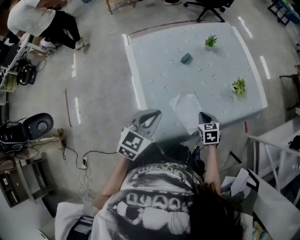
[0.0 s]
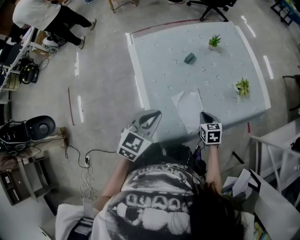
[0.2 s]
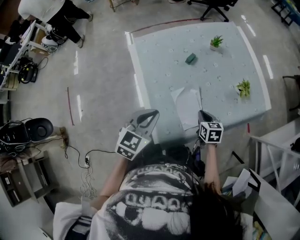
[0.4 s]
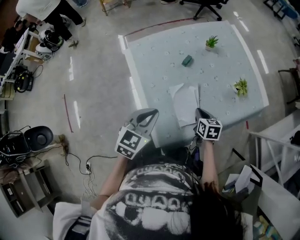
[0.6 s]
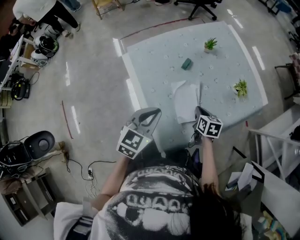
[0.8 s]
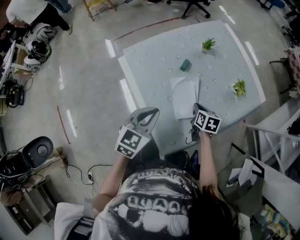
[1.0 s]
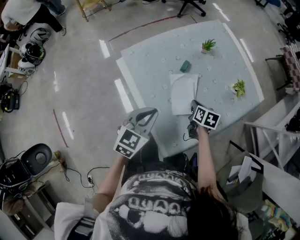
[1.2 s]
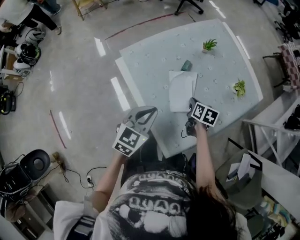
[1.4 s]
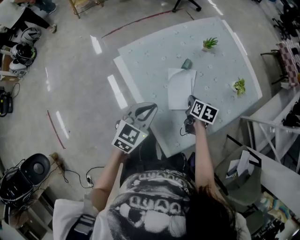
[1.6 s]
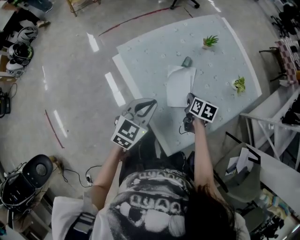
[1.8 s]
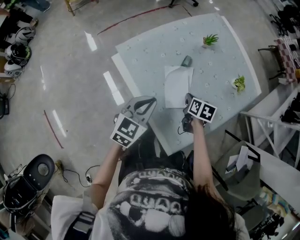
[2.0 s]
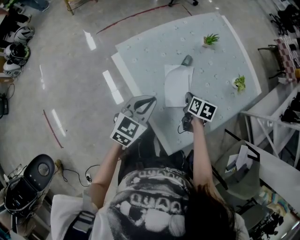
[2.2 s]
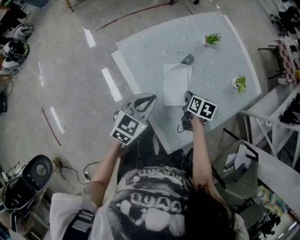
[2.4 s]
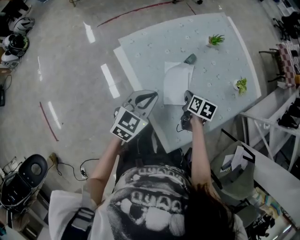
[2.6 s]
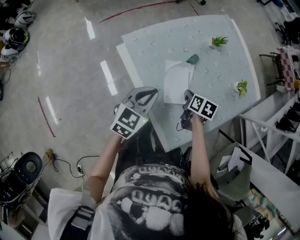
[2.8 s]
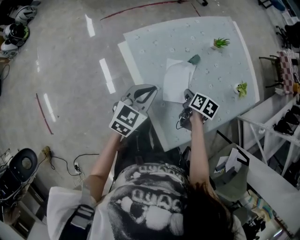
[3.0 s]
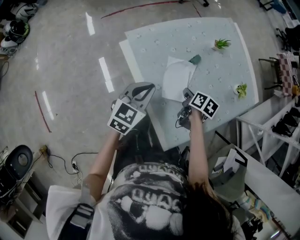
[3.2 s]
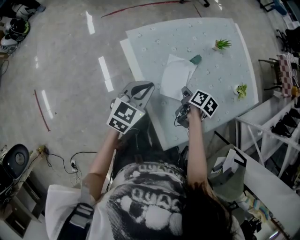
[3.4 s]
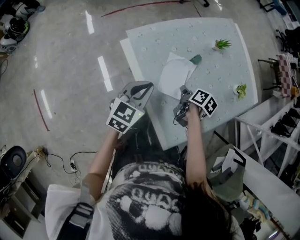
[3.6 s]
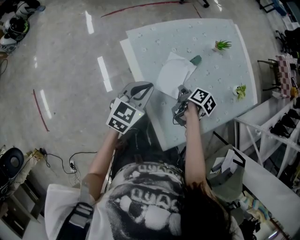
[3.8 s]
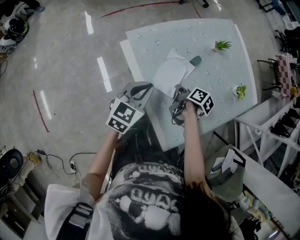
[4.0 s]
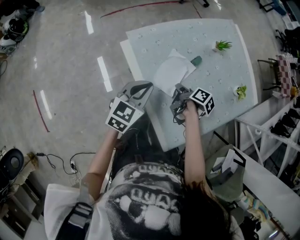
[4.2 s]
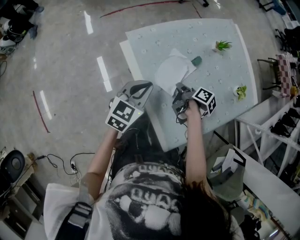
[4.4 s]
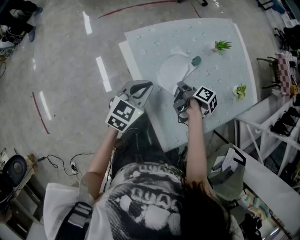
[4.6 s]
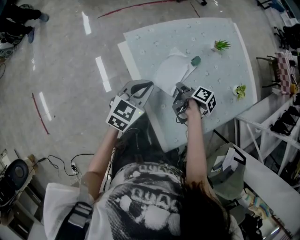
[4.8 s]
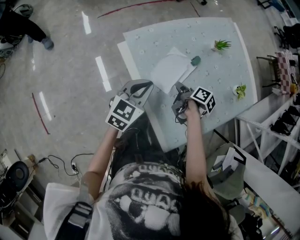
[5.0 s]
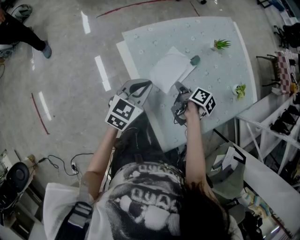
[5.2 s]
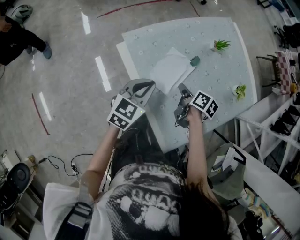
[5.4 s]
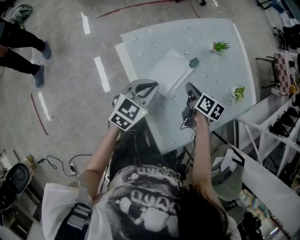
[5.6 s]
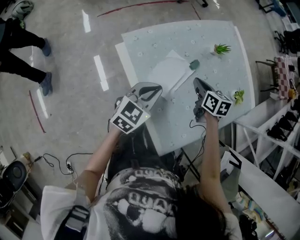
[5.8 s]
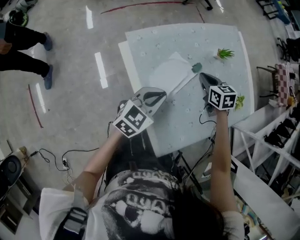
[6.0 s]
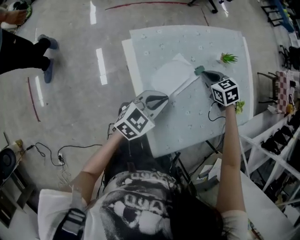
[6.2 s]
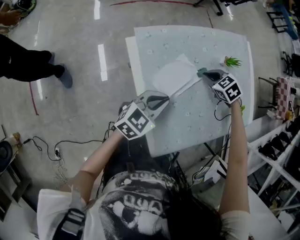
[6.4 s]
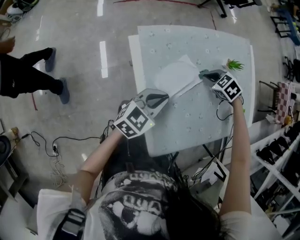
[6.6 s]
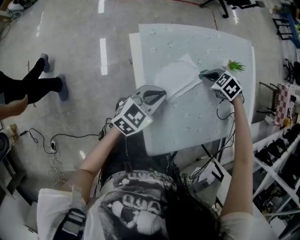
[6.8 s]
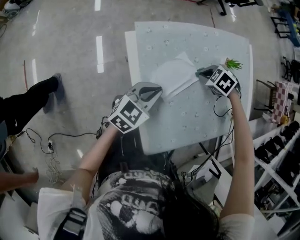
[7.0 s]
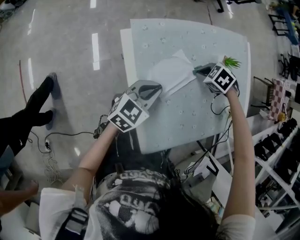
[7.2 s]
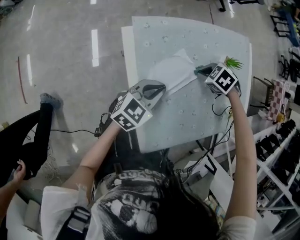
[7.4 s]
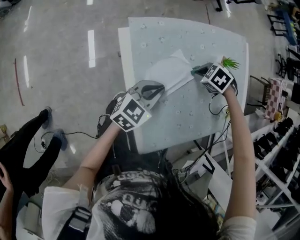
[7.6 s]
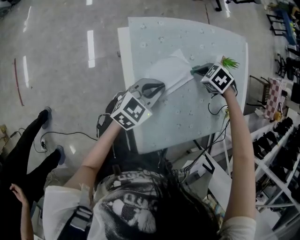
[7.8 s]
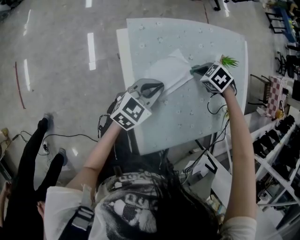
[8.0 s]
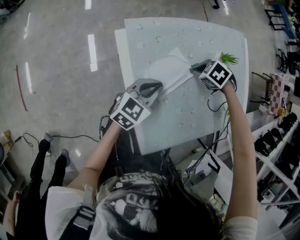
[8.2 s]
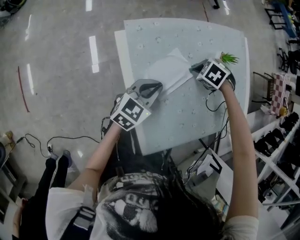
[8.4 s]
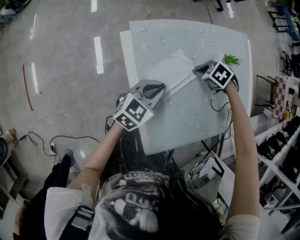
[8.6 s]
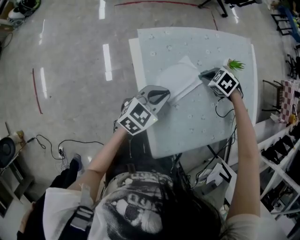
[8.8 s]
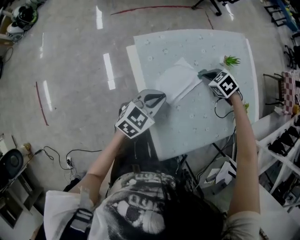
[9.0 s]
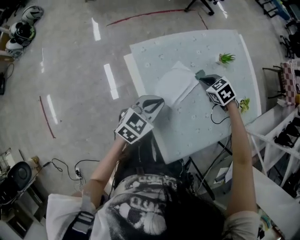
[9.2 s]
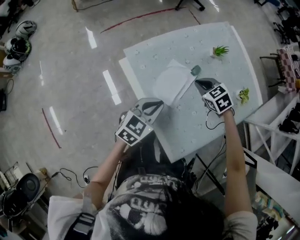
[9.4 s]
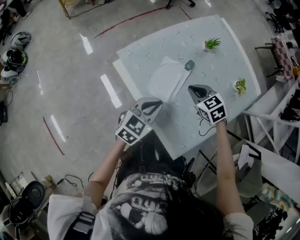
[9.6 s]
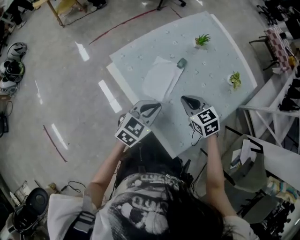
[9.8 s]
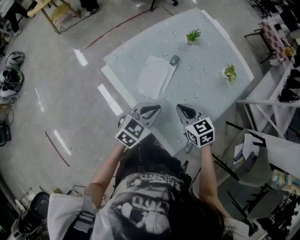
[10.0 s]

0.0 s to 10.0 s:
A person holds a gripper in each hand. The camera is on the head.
0.0 to 1.4 s: The two grippers go about 15 cm to the left and forward. The right gripper rolls clockwise, seen from behind, by approximately 40 degrees.
1.4 to 2.8 s: The right gripper shifts roughly 5 cm to the left; the left gripper ends up some 5 cm from where it was.
2.8 to 4.2 s: The right gripper moves to the left, about 5 cm, and changes its angle by roughly 40 degrees.
4.2 to 5.8 s: The left gripper shifts by about 5 cm, while the right gripper shifts roughly 10 cm forward, upward and to the right, and twists roughly 50 degrees counterclockwise, seen from behind.
5.8 to 7.2 s: The right gripper shifts by some 5 cm, and tilts its fingers some 40 degrees downward.
7.2 to 8.6 s: The grippers make only small movements.
8.6 to 10.0 s: The right gripper changes place by some 20 cm, and points its fingers approximately 40 degrees further upward; the left gripper shifts by about 10 cm, and rotates about 20 degrees.

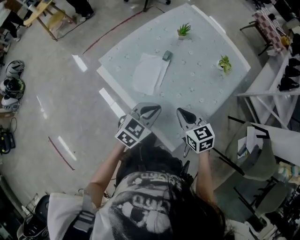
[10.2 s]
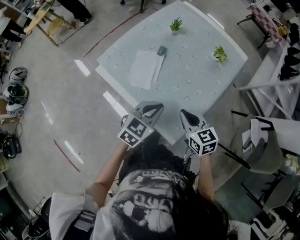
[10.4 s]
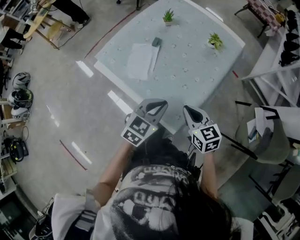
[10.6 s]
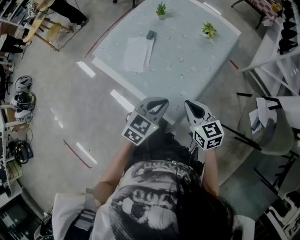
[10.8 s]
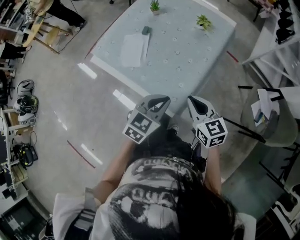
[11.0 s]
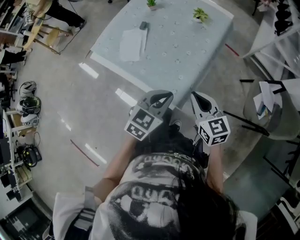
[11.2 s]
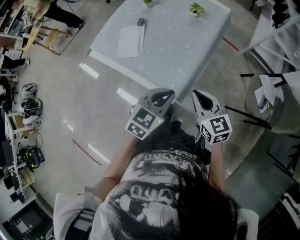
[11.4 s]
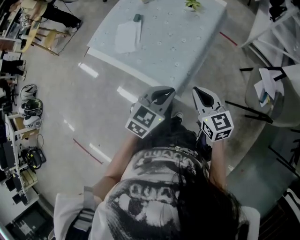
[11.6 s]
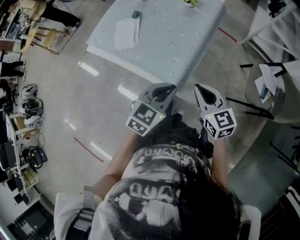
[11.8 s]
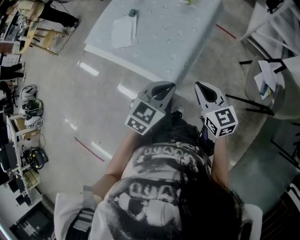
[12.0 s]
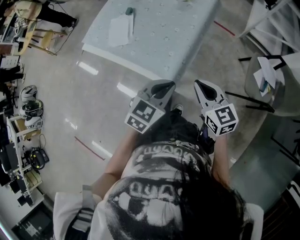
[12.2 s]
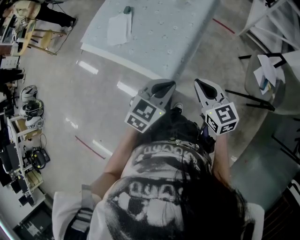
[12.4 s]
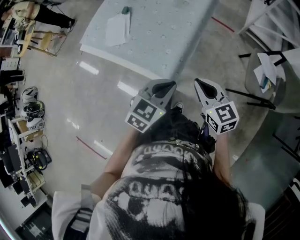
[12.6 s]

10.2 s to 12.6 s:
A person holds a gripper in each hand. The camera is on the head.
10.2 to 11.4 s: Both grippers travel together backward and to the right, approximately 25 cm. The right gripper swivels roughly 20 degrees.
11.4 to 12.6 s: Both grippers travel together to the right, some 5 cm.

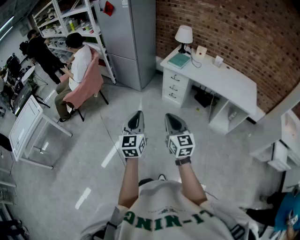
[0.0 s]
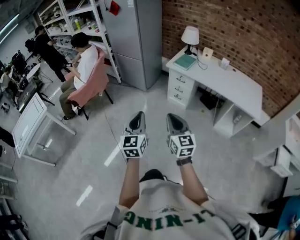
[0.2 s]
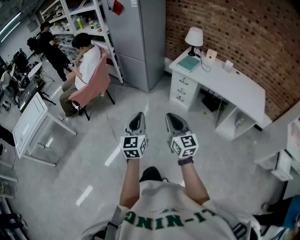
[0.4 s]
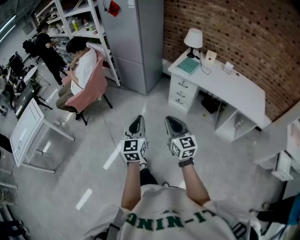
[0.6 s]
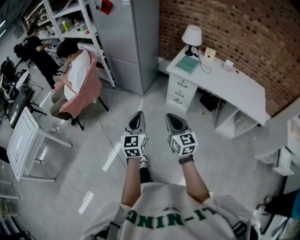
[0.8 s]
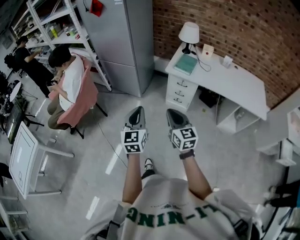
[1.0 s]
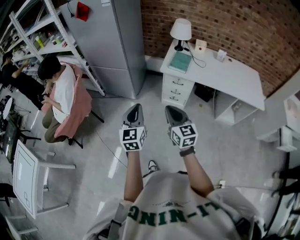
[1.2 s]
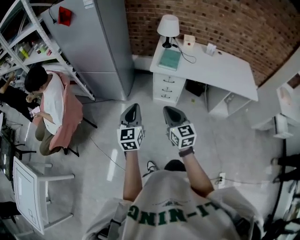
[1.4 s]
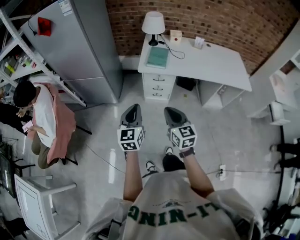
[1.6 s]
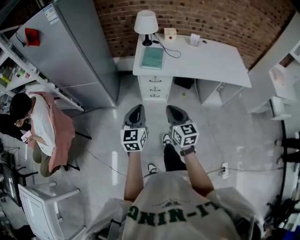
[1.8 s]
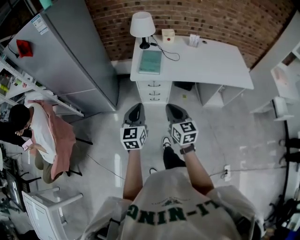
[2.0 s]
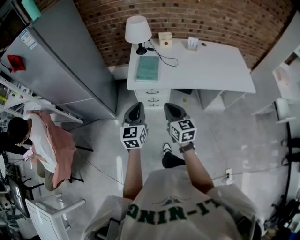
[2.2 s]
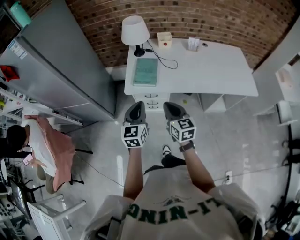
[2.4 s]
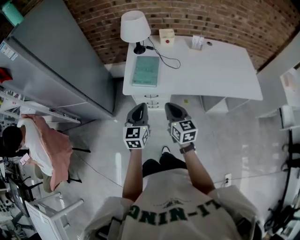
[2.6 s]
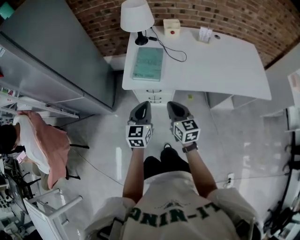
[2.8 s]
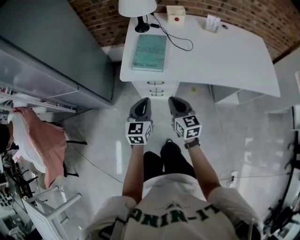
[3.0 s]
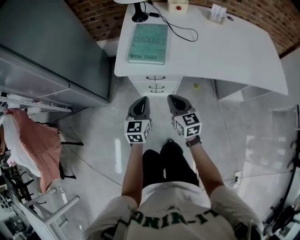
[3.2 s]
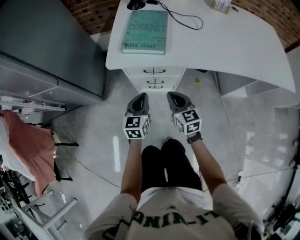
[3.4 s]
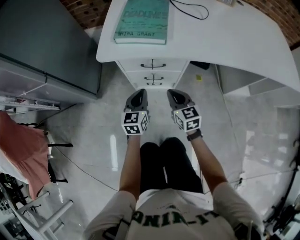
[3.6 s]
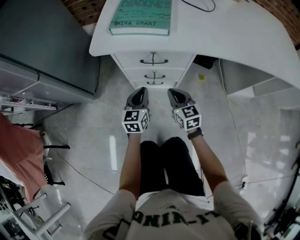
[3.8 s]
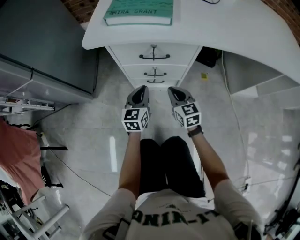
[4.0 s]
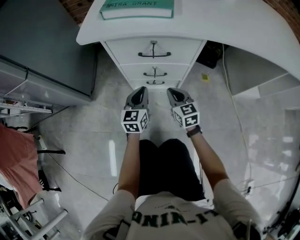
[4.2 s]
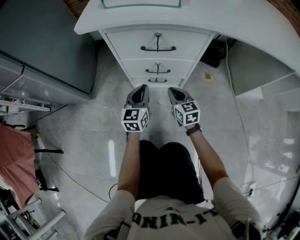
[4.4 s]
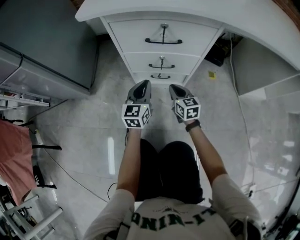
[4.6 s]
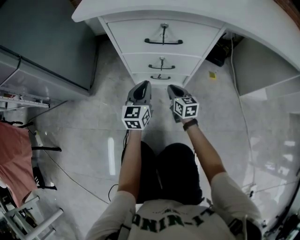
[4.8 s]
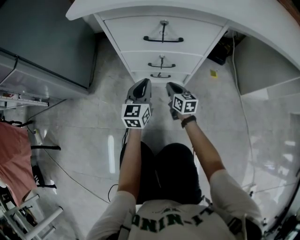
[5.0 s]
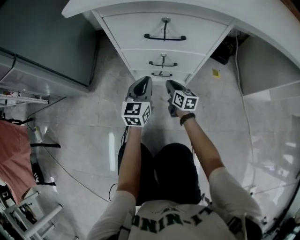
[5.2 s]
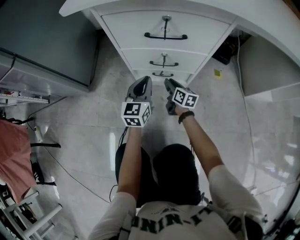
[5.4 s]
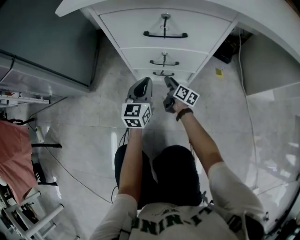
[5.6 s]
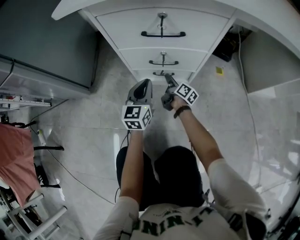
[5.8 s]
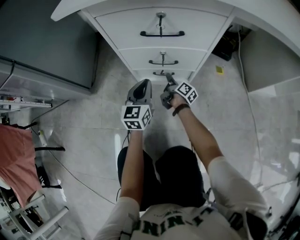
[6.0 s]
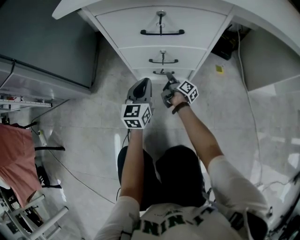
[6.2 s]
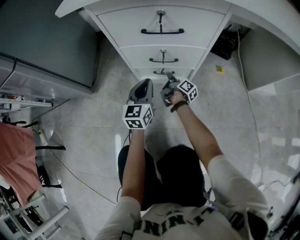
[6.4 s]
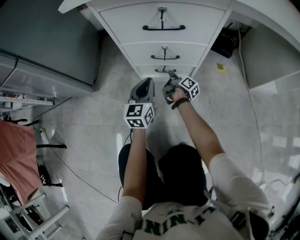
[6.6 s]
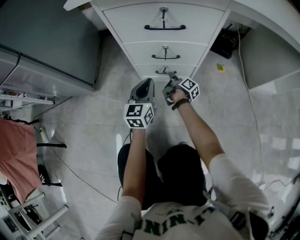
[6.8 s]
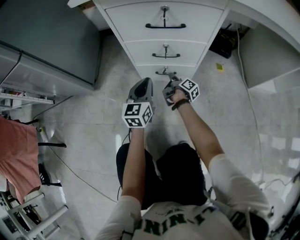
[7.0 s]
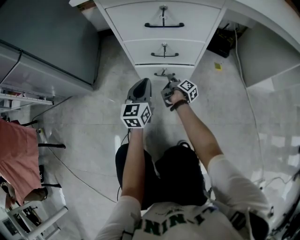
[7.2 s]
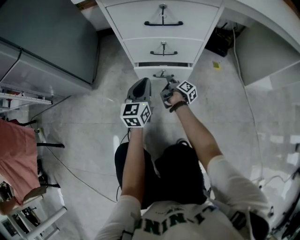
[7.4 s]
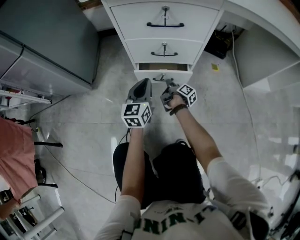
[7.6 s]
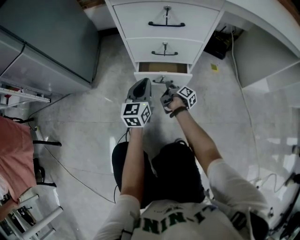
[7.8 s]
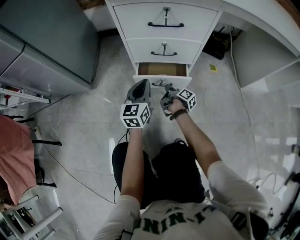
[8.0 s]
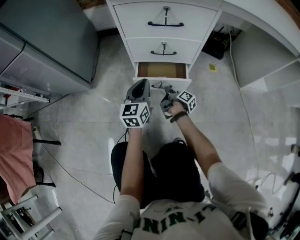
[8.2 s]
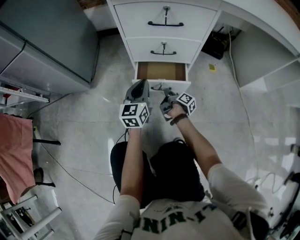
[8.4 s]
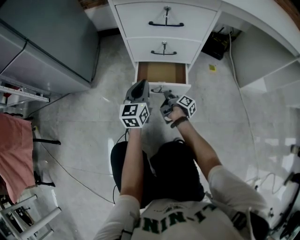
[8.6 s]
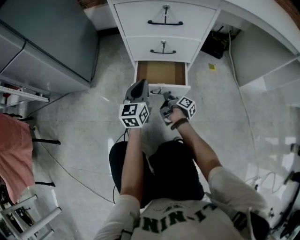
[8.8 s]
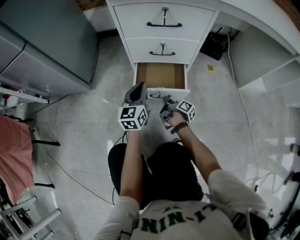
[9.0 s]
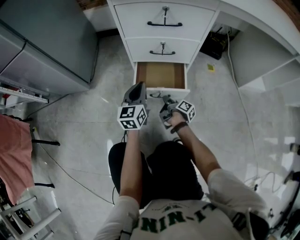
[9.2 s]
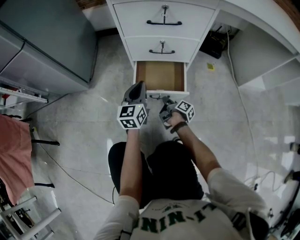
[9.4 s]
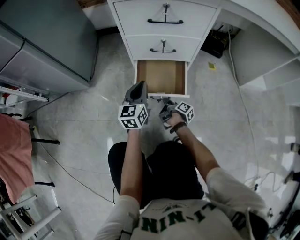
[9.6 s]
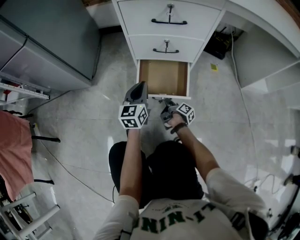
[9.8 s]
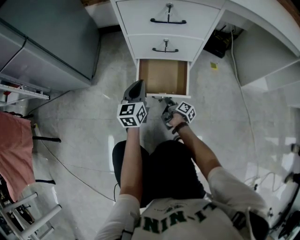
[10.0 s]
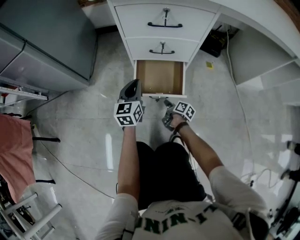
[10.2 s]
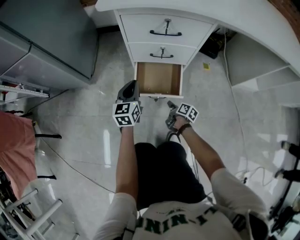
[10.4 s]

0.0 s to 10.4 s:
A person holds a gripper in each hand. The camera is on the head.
0.0 to 1.4 s: The two grippers go some 35 cm forward.
1.4 to 3.0 s: Both grippers move forward, downward and to the right, approximately 50 cm.
3.0 to 4.4 s: Both grippers travel together downward, roughly 40 cm.
4.4 to 6.0 s: The right gripper travels downward and forward by roughly 20 cm, and rolls clockwise, seen from behind, by approximately 70 degrees.
6.0 to 7.4 s: The right gripper goes about 5 cm backward.
7.4 to 9.0 s: The right gripper moves backward, roughly 15 cm.
9.0 to 10.4 s: The left gripper moves roughly 5 cm, while the right gripper moves backward, some 5 cm, and swivels approximately 30 degrees.

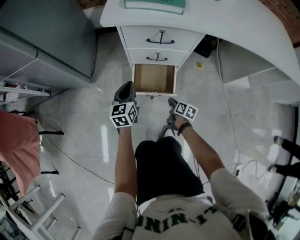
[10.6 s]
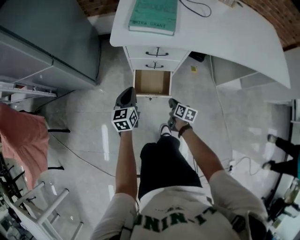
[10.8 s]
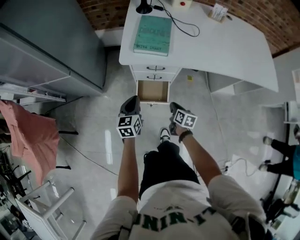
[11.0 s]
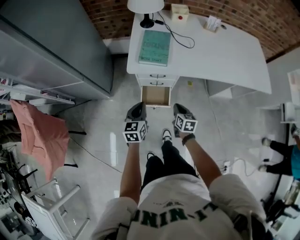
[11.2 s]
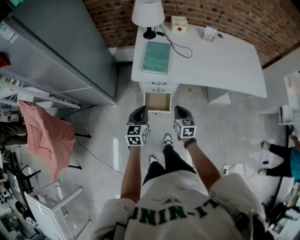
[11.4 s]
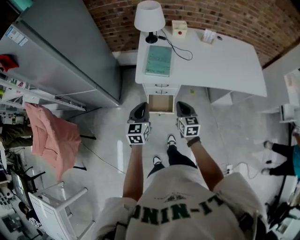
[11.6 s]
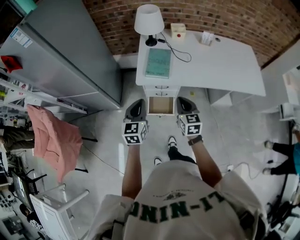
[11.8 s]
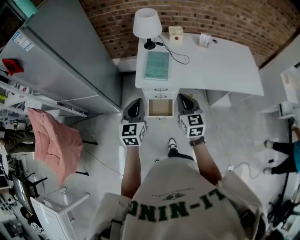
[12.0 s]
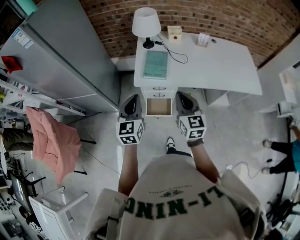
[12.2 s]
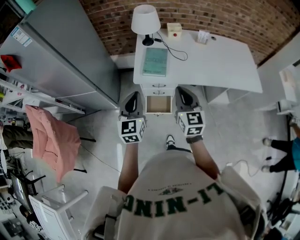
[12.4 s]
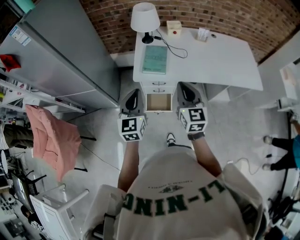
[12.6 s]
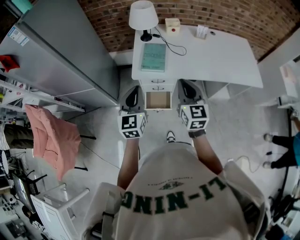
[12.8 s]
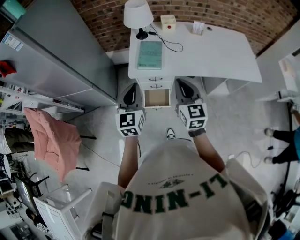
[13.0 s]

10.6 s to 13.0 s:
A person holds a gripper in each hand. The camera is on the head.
10.6 to 11.8 s: The grippers both shift upward by some 60 cm. The right gripper twists roughly 50 degrees counterclockwise, seen from behind.
11.8 to 13.0 s: The right gripper goes some 15 cm upward, while the left gripper moves upward, roughly 10 cm.
